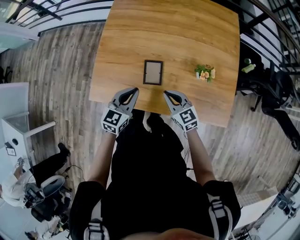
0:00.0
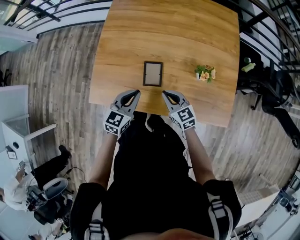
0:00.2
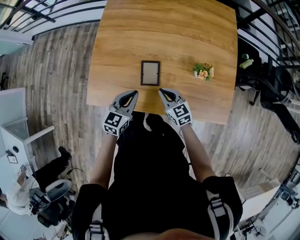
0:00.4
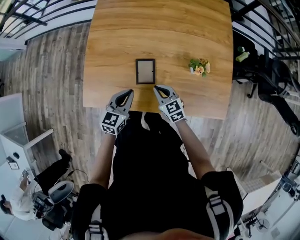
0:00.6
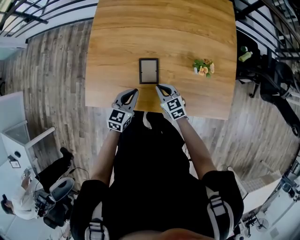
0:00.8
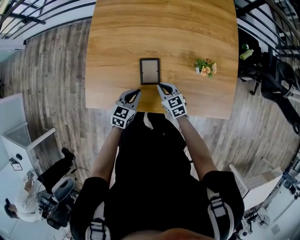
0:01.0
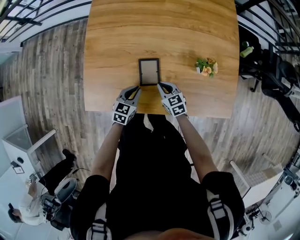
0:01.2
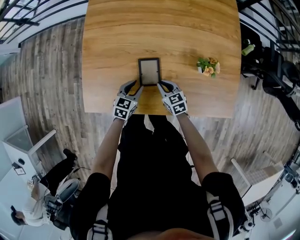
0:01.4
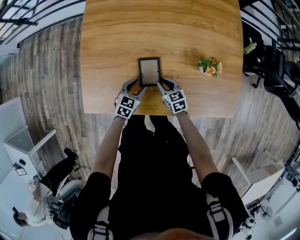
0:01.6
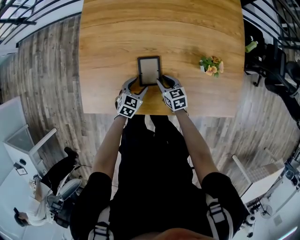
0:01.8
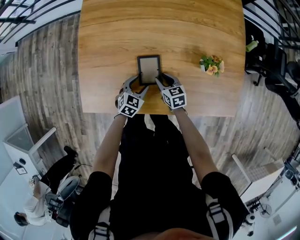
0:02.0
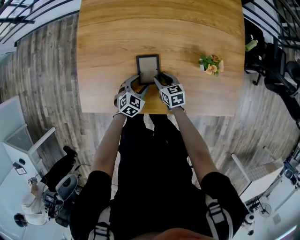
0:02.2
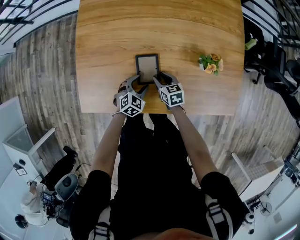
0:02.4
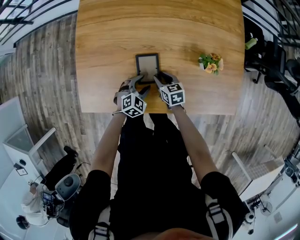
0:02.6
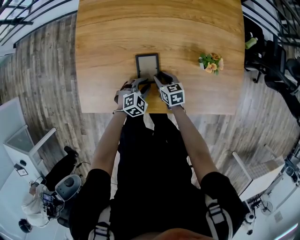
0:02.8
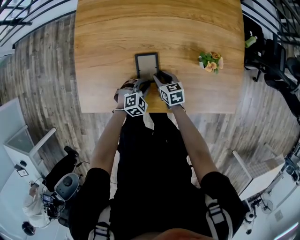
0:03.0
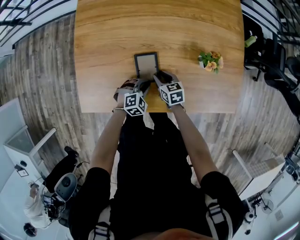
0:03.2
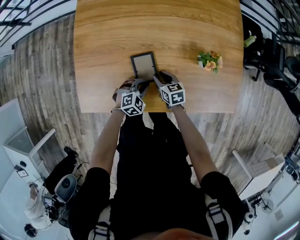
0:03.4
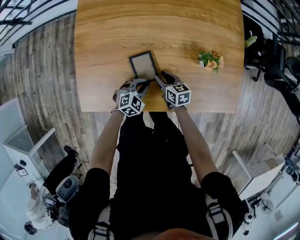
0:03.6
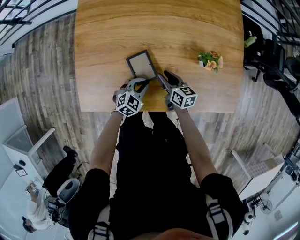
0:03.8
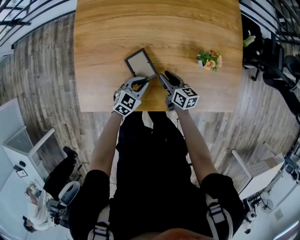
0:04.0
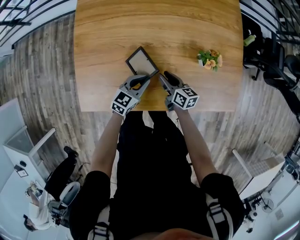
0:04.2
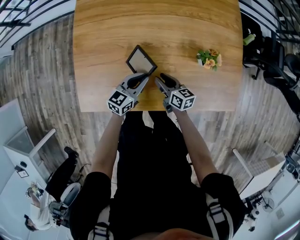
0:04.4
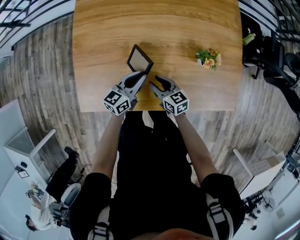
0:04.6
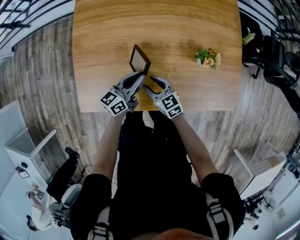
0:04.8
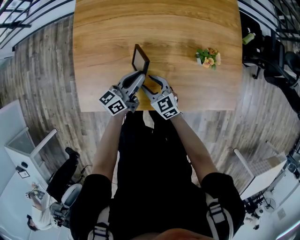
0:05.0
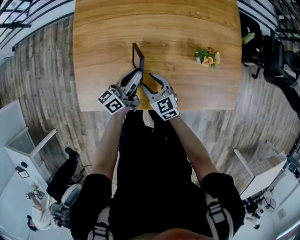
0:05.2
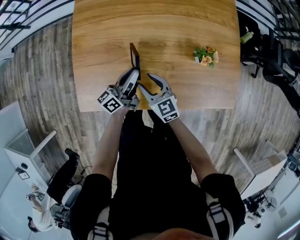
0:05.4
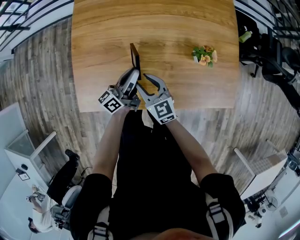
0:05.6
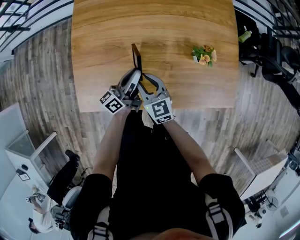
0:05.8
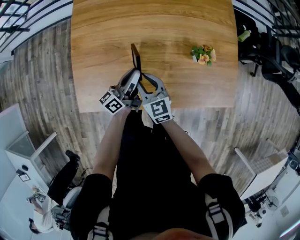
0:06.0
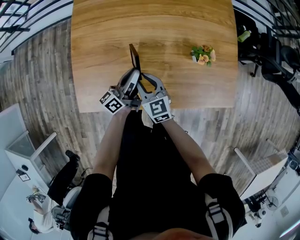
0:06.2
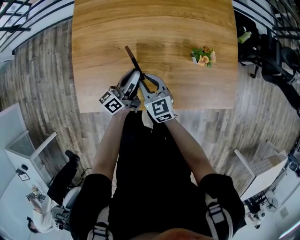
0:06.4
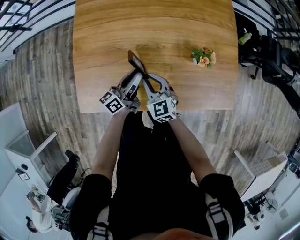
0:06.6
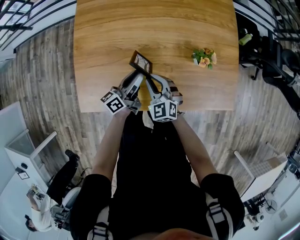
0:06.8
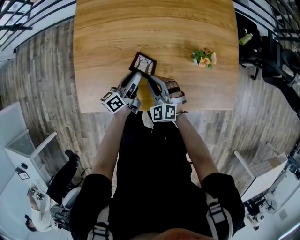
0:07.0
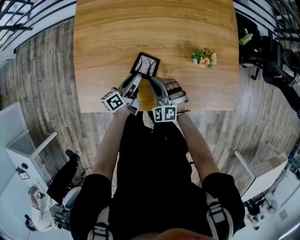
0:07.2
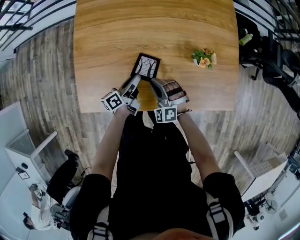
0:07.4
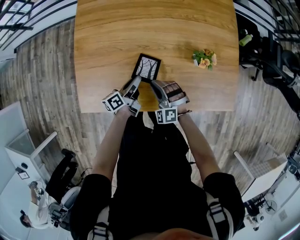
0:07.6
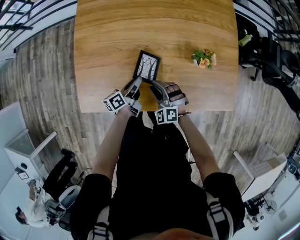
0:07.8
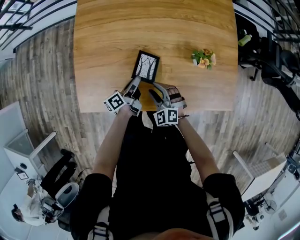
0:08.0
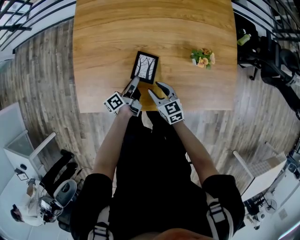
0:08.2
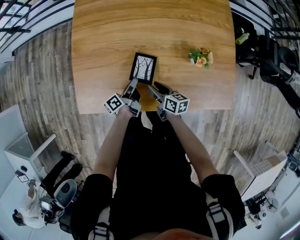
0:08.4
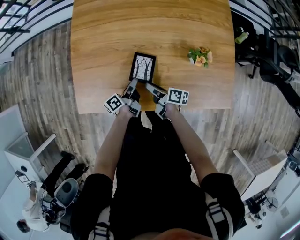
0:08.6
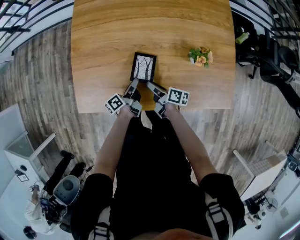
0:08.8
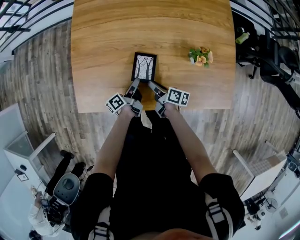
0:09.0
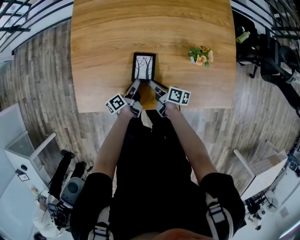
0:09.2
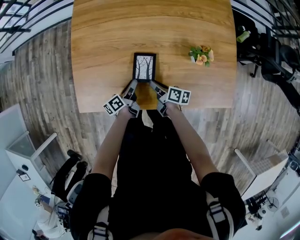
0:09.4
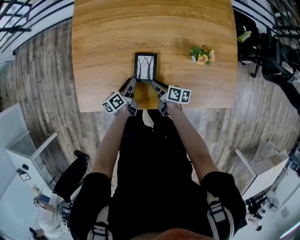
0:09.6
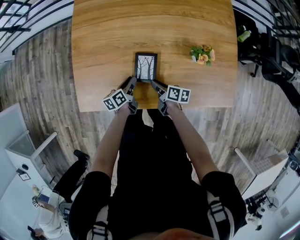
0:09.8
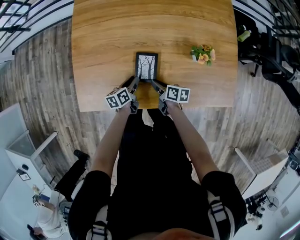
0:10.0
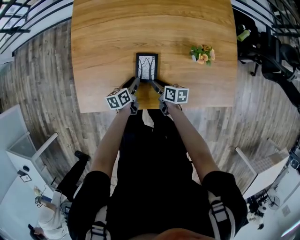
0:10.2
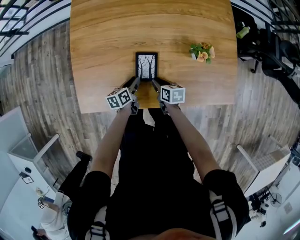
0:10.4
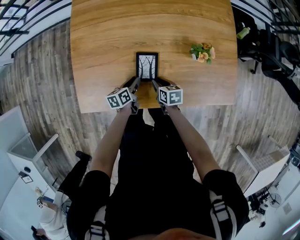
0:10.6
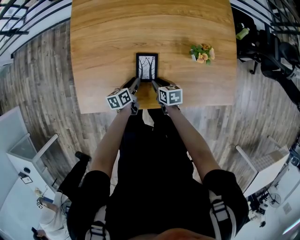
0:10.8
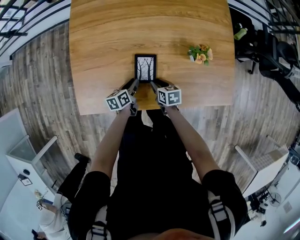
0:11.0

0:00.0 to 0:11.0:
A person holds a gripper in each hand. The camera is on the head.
0:00.0 to 0:01.6: The right gripper travels downward and forward by roughly 20 cm, rotates about 30 degrees, and opens. Meanwhile the left gripper moves downward, some 20 cm, changes its angle by approximately 20 degrees, and opens.
0:01.6 to 0:03.2: The left gripper heads to the right, covering roughly 5 cm, rolls clockwise, seen from behind, by about 40 degrees, and closes its fingers.
0:03.2 to 0:04.8: The right gripper travels upward by some 10 cm, and changes its angle by approximately 20 degrees. Meanwhile the left gripper heads upward, covering roughly 15 cm, and points its fingers approximately 50 degrees further upward.
0:04.8 to 0:06.2: The left gripper swivels some 20 degrees, while the right gripper travels upward by approximately 10 cm.
0:06.2 to 0:07.8: The two grippers go some 10 cm downward. The right gripper rolls counterclockwise, seen from behind, by some 50 degrees; the left gripper swivels about 30 degrees.
0:07.8 to 0:09.4: The right gripper ends up roughly 5 cm from where it was, and rotates around the line of its fingers by roughly 120 degrees, clockwise from behind; the left gripper ends up approximately 5 cm from where it was.
0:09.4 to 0:11.0: The right gripper rotates about 40 degrees, while the left gripper rotates roughly 20 degrees.

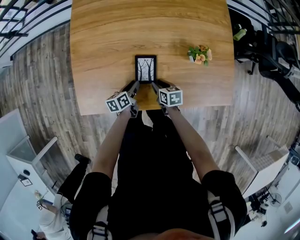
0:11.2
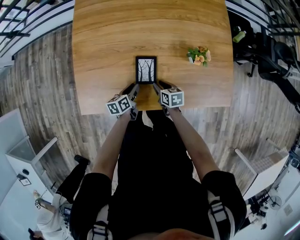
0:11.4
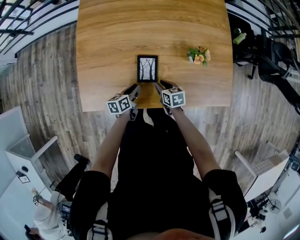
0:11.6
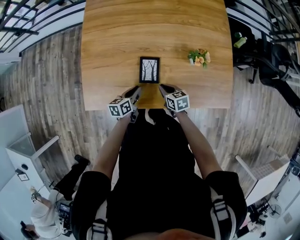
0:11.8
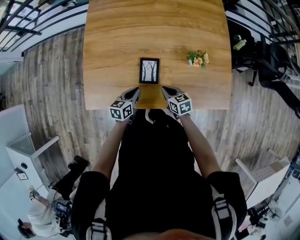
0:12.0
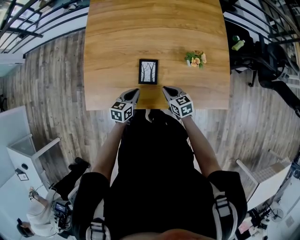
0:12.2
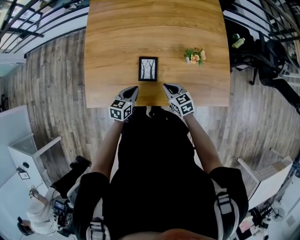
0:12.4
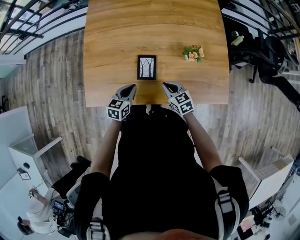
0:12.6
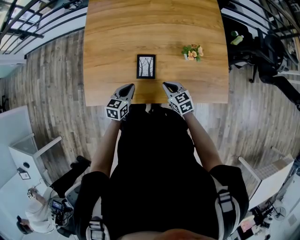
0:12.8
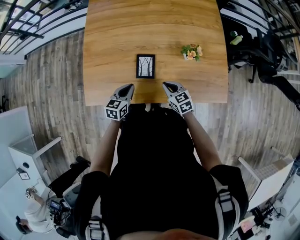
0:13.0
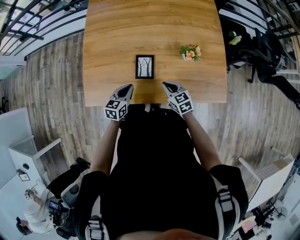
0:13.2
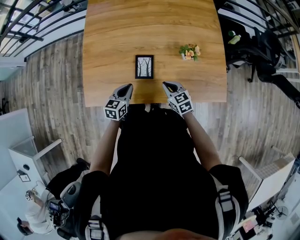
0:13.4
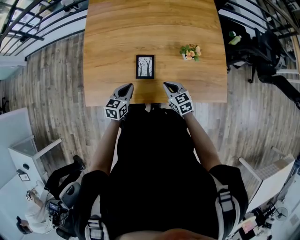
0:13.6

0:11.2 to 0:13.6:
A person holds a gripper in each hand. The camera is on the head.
0:11.2 to 0:12.4: Both grippers move upward, roughly 10 cm. The left gripper changes its angle by roughly 40 degrees, and closes its fingers; the right gripper swivels some 30 degrees, and closes its fingers.
0:12.4 to 0:13.6: The grippers make only small movements.

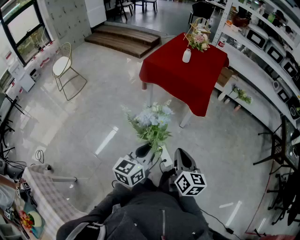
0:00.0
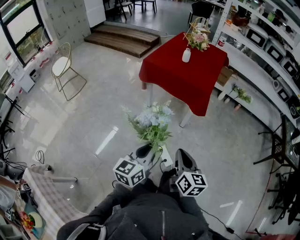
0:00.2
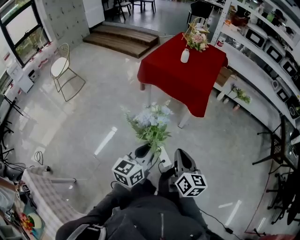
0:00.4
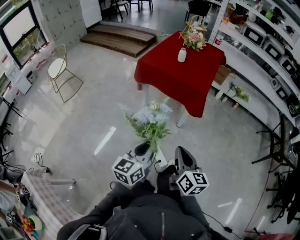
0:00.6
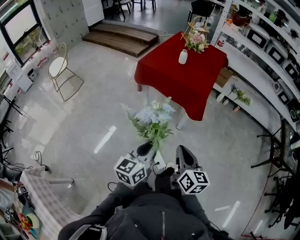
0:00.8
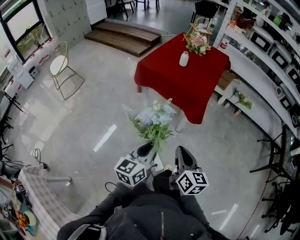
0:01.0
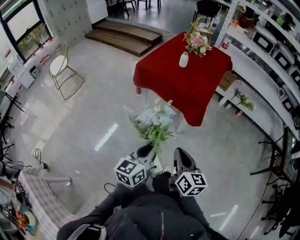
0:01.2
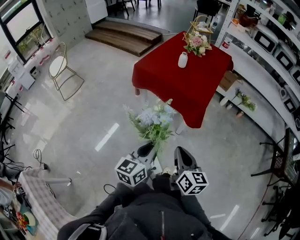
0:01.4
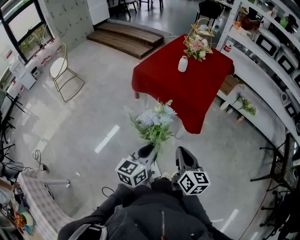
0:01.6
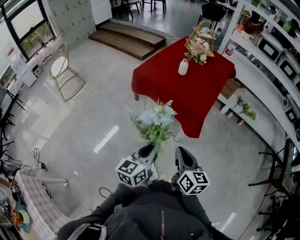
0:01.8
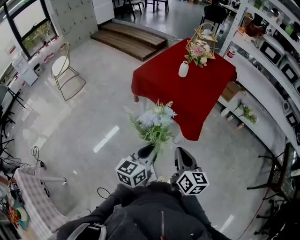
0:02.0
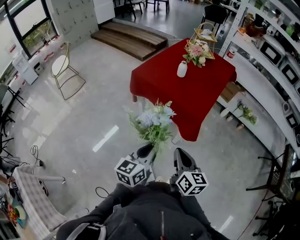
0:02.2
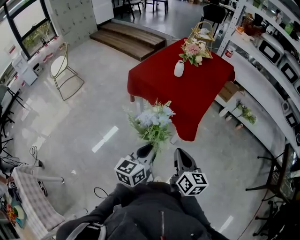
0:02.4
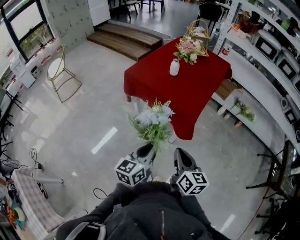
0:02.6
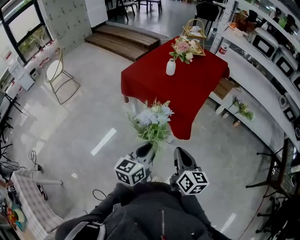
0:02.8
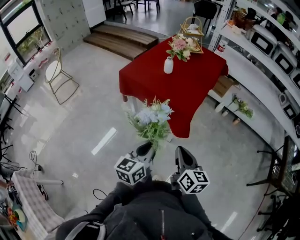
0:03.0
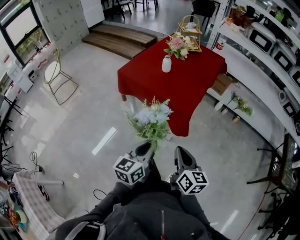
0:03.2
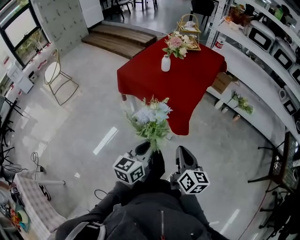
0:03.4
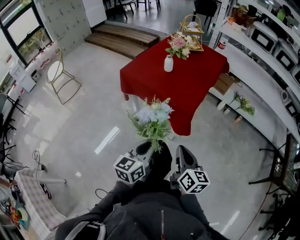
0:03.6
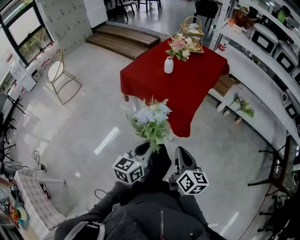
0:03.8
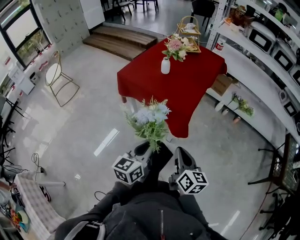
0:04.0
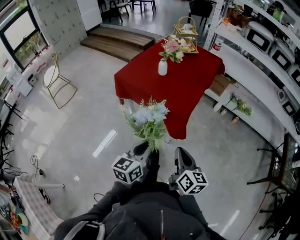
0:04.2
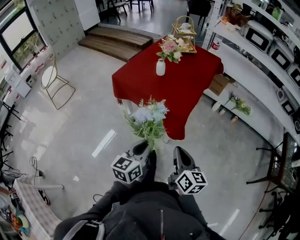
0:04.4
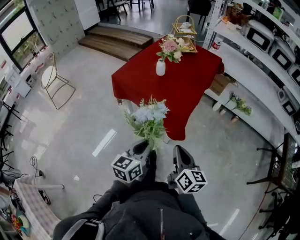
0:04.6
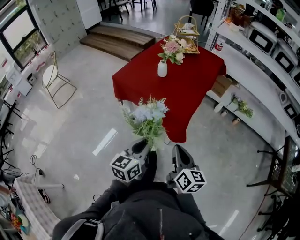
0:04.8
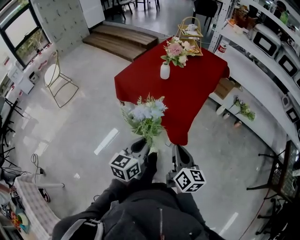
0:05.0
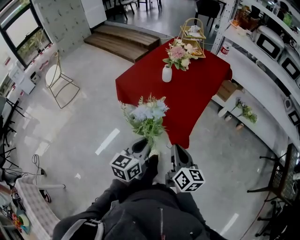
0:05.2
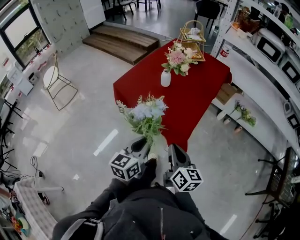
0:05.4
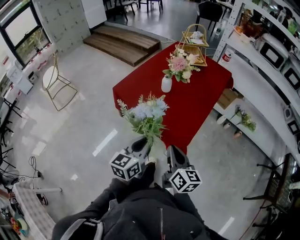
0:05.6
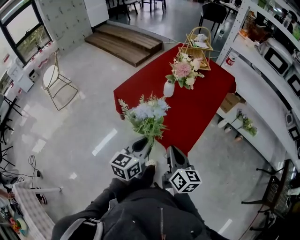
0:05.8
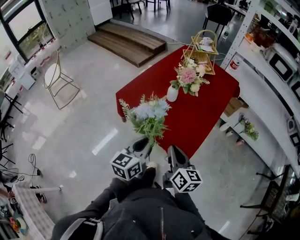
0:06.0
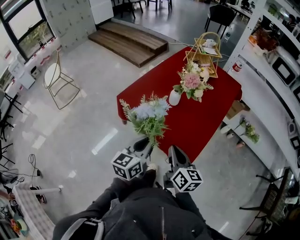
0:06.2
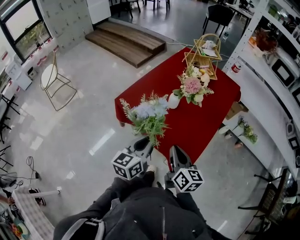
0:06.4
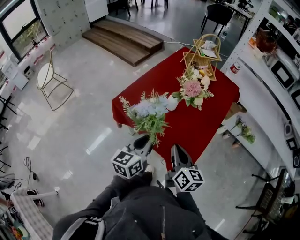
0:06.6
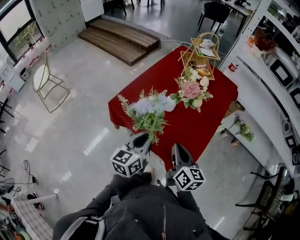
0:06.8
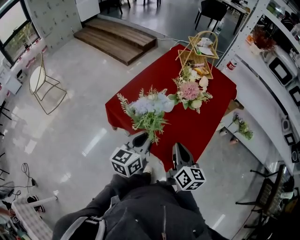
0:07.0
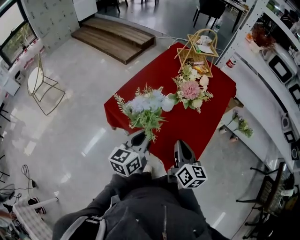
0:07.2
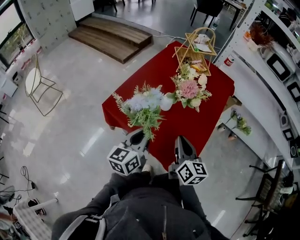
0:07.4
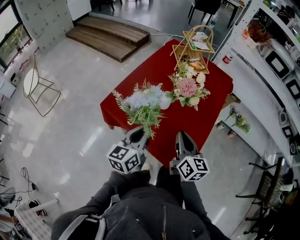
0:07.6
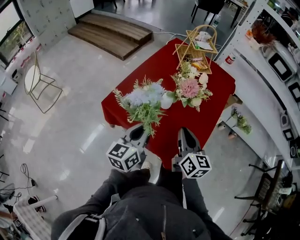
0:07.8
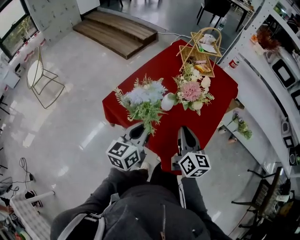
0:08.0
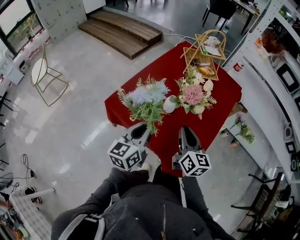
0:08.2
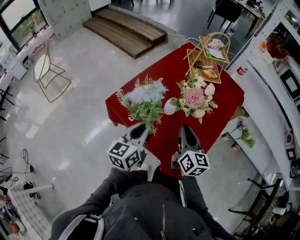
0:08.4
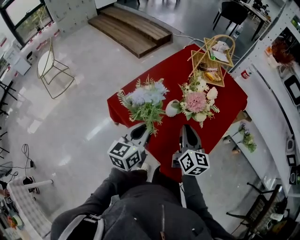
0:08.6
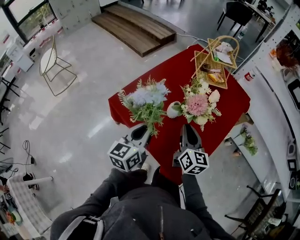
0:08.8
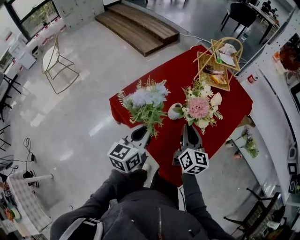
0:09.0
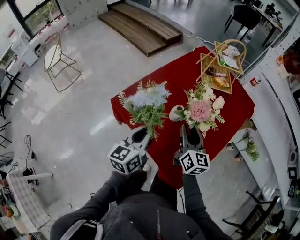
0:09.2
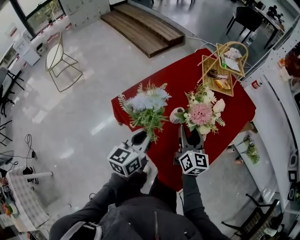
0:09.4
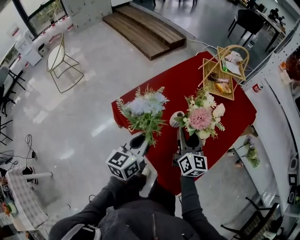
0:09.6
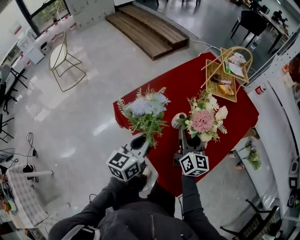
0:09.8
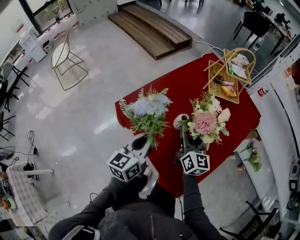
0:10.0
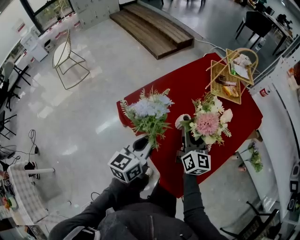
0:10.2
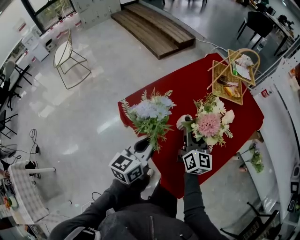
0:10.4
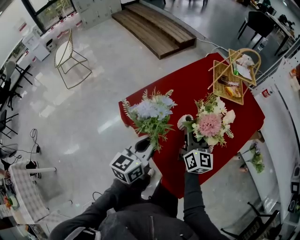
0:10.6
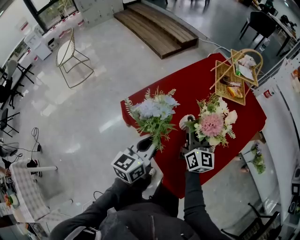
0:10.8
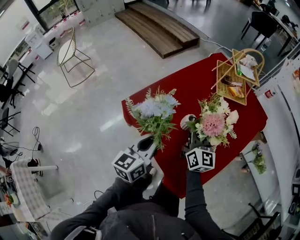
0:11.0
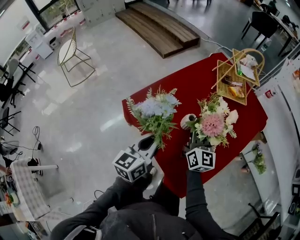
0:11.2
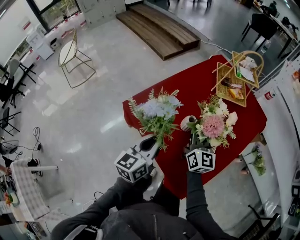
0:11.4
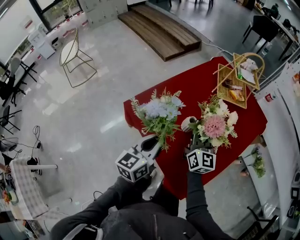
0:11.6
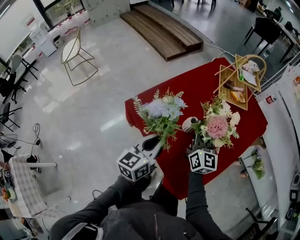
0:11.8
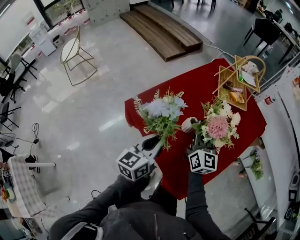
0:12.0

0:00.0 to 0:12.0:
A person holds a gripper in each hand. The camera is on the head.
0:00.0 to 0:01.6: The left gripper goes roughly 20 cm forward and to the right. Meanwhile the right gripper goes some 20 cm forward.
0:01.6 to 0:03.0: The right gripper is displaced to the right by about 10 cm. The left gripper shifts roughly 10 cm to the right and forward.
0:03.0 to 0:04.4: The grippers make only small movements.
0:04.4 to 0:06.0: The grippers both shift forward by some 20 cm.
0:06.0 to 0:07.6: The two grippers go about 15 cm forward.
0:07.6 to 0:09.0: The left gripper travels forward by some 5 cm. The right gripper travels forward by approximately 10 cm.
0:09.0 to 0:10.4: The right gripper shifts about 5 cm forward, and opens up.
0:10.4 to 0:12.0: The right gripper closes its fingers.
